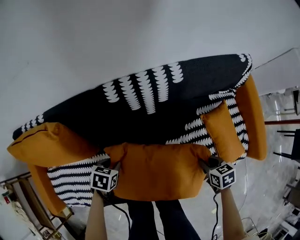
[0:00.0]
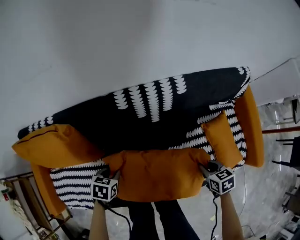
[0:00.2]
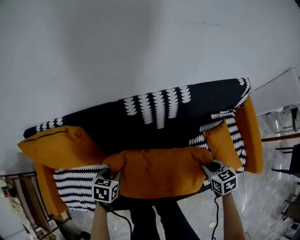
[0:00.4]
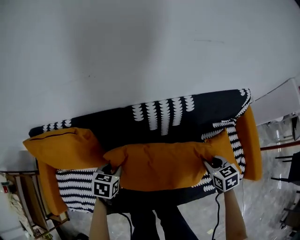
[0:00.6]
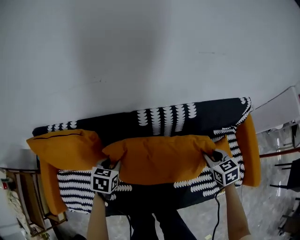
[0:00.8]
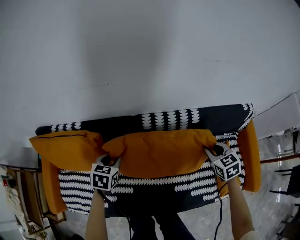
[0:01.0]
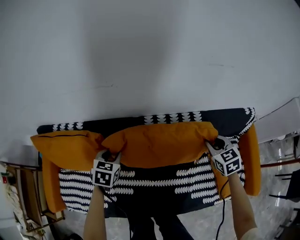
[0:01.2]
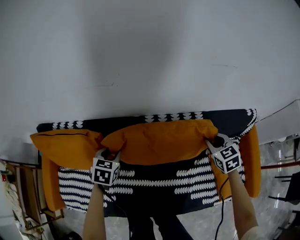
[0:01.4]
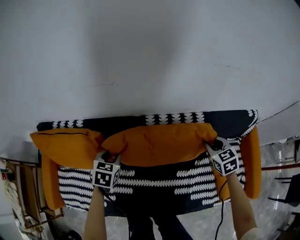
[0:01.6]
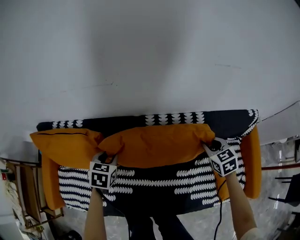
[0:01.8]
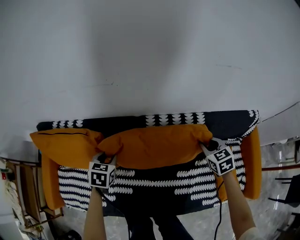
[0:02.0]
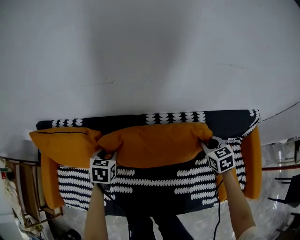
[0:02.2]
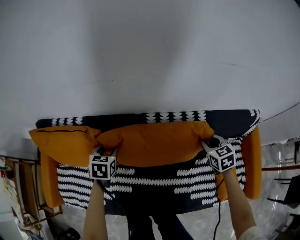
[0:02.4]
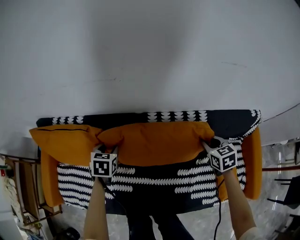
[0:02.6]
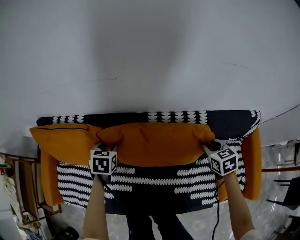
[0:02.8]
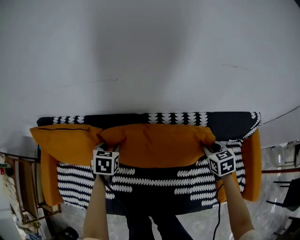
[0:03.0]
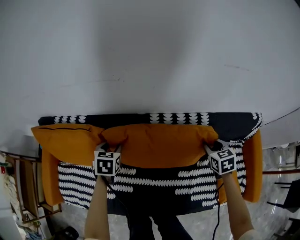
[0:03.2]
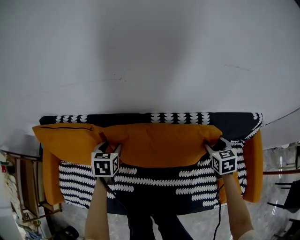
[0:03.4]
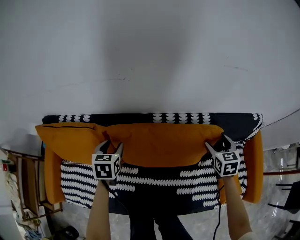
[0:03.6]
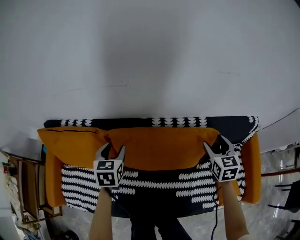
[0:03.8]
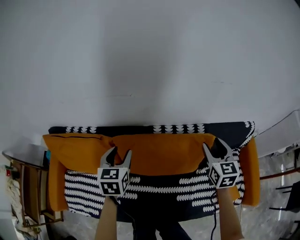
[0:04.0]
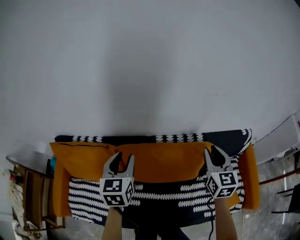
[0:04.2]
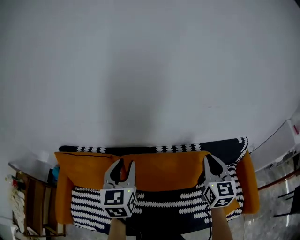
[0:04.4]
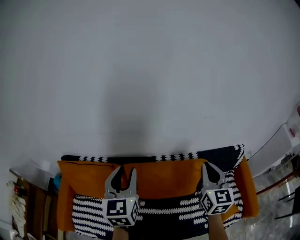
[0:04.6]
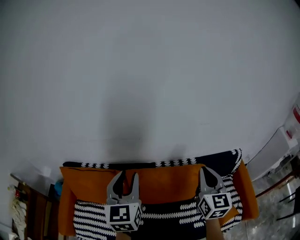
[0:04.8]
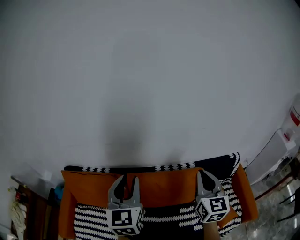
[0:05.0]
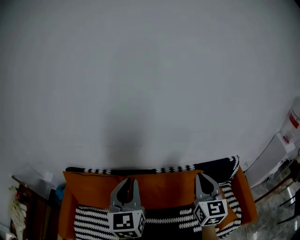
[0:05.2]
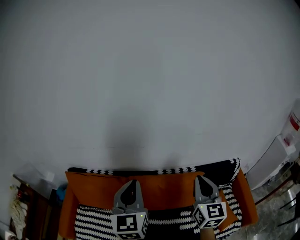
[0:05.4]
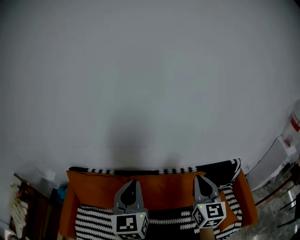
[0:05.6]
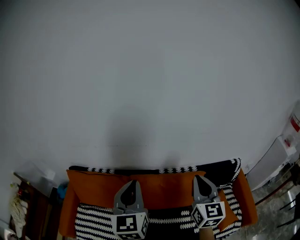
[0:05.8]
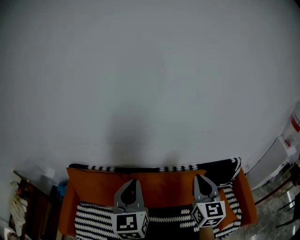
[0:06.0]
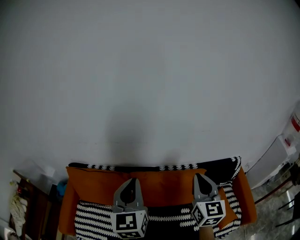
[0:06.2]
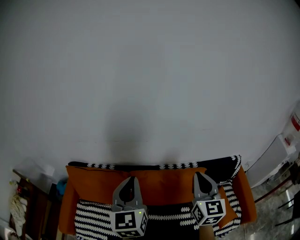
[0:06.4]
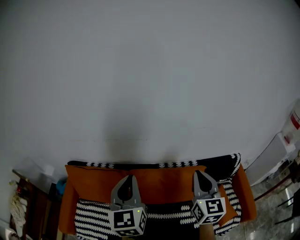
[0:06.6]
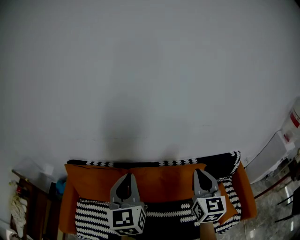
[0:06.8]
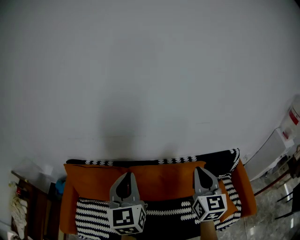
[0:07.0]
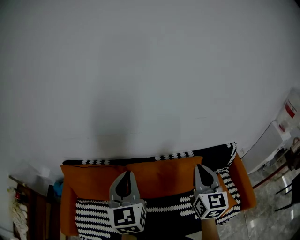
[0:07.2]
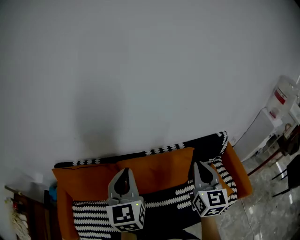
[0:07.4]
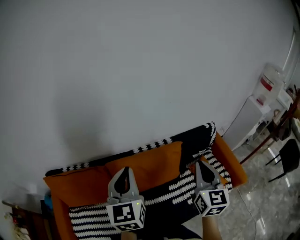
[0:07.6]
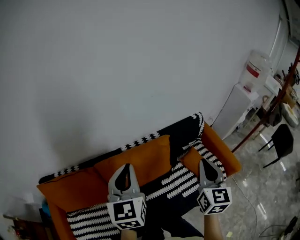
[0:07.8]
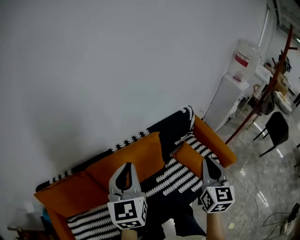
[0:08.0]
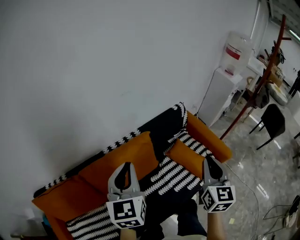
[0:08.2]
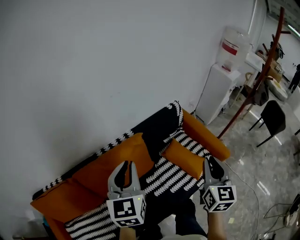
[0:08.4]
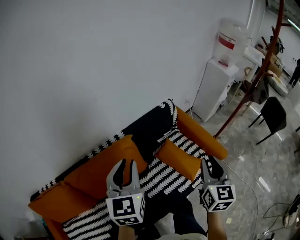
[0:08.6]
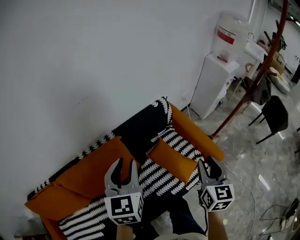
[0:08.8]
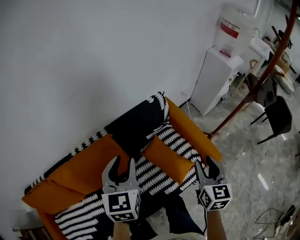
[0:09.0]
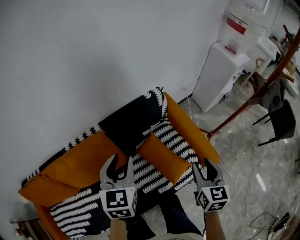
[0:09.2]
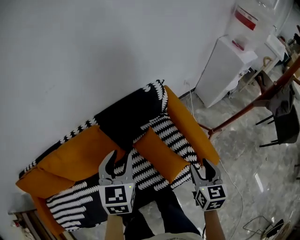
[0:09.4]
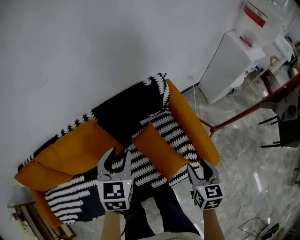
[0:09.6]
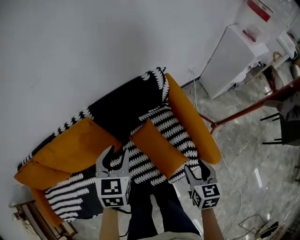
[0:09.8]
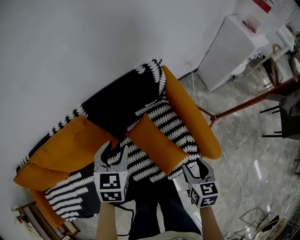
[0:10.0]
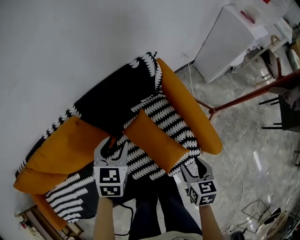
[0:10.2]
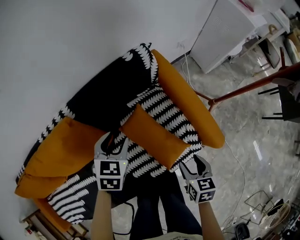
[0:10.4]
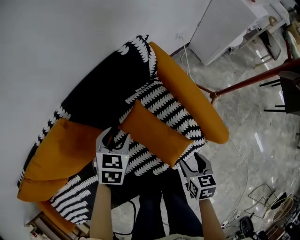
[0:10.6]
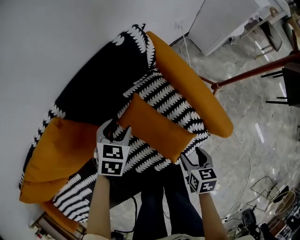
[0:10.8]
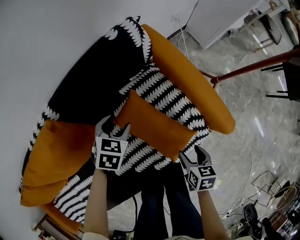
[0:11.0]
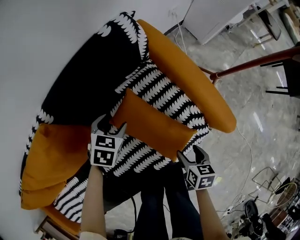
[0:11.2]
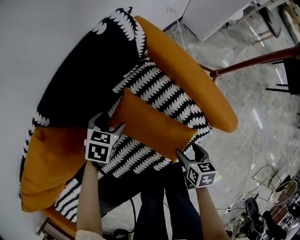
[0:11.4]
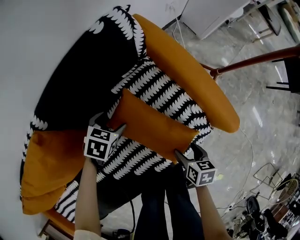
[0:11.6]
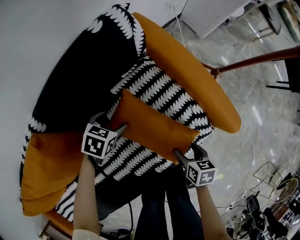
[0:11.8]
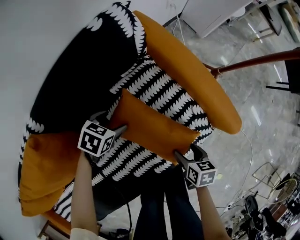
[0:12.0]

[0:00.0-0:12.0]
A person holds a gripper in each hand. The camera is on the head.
0:00.0 to 0:01.6: The right gripper shifts approximately 30 cm forward and upward, and swivels some 40 degrees, while the left gripper travels upward, forward and to the left by about 25 cm, and swivels about 30 degrees.
0:01.6 to 0:03.0: There are only small adjustments of the grippers.
0:03.0 to 0:04.4: Both grippers move upward, approximately 30 cm. The left gripper points its fingers approximately 40 degrees further upward, while the right gripper tips its fingers upward by some 40 degrees, and opens, then closes once more.
0:04.4 to 0:06.0: The right gripper shifts approximately 15 cm upward, backward and to the left. Meanwhile the left gripper shifts approximately 15 cm upward and backward, and closes its fingers.
0:06.0 to 0:07.6: The right gripper moves to the right and backward, some 10 cm, while the left gripper shifts about 5 cm to the right.
0:07.6 to 0:09.0: The two grippers travel together, to the right, roughly 40 cm. The right gripper turns by roughly 20 degrees, and opens its fingers, while the left gripper turns by approximately 20 degrees, and opens up.
0:09.0 to 0:10.4: The two grippers go approximately 25 cm downward. The left gripper rotates approximately 30 degrees. Meanwhile the right gripper swivels roughly 30 degrees.
0:10.4 to 0:12.0: The two grippers go some 20 cm downward. The left gripper swivels some 40 degrees, and opens. Meanwhile the right gripper changes its angle by about 20 degrees.

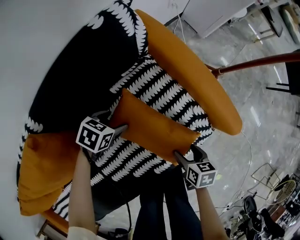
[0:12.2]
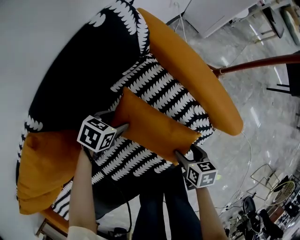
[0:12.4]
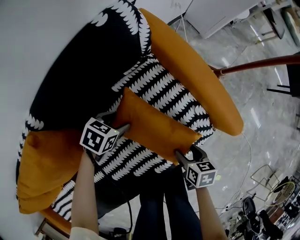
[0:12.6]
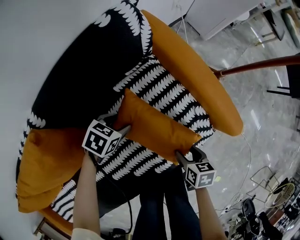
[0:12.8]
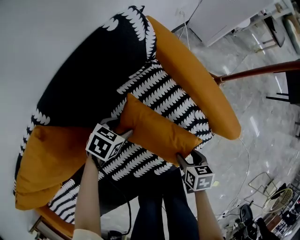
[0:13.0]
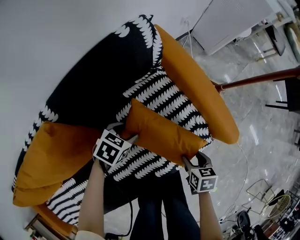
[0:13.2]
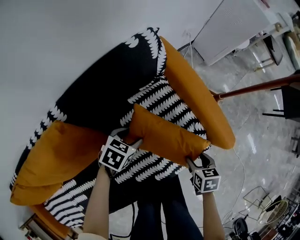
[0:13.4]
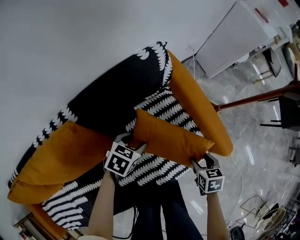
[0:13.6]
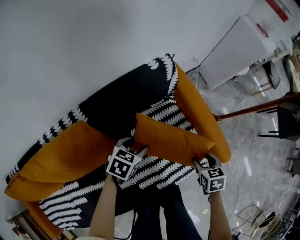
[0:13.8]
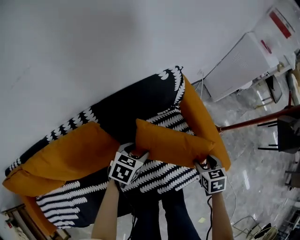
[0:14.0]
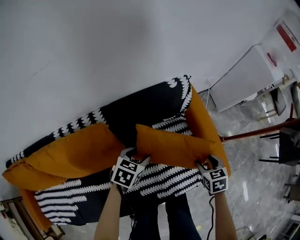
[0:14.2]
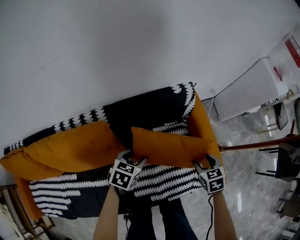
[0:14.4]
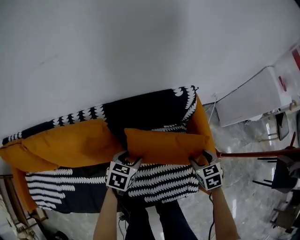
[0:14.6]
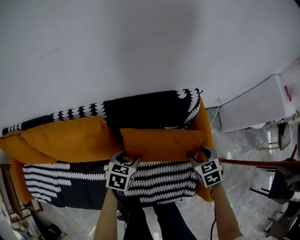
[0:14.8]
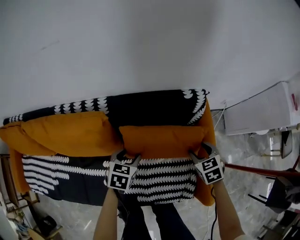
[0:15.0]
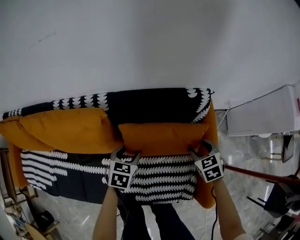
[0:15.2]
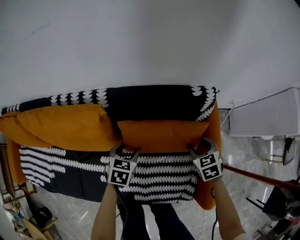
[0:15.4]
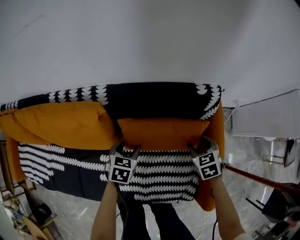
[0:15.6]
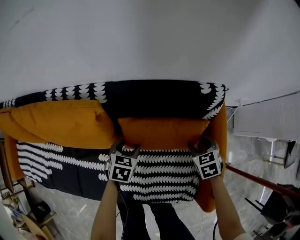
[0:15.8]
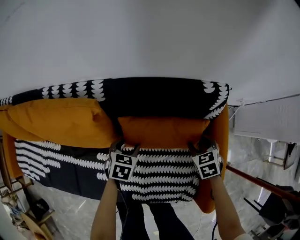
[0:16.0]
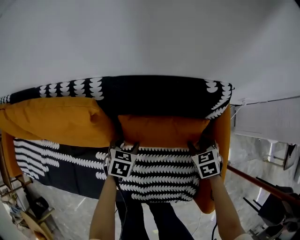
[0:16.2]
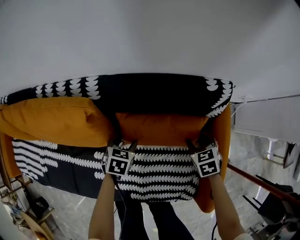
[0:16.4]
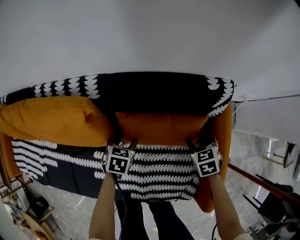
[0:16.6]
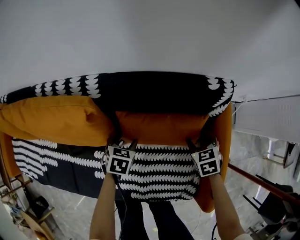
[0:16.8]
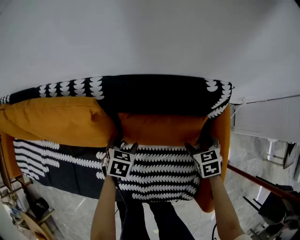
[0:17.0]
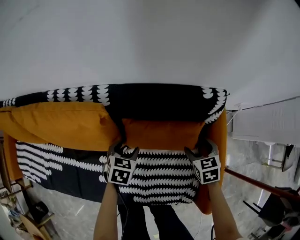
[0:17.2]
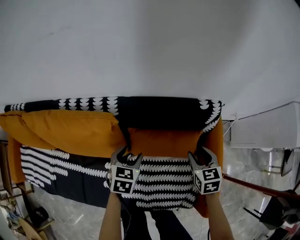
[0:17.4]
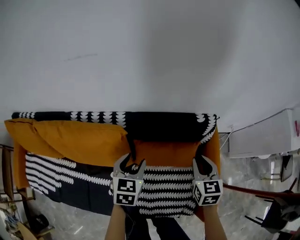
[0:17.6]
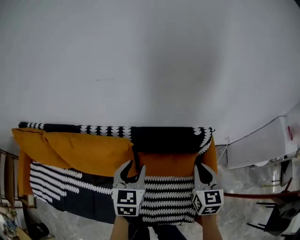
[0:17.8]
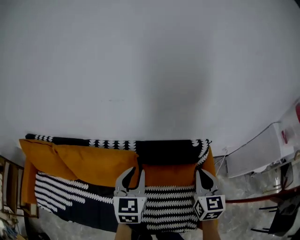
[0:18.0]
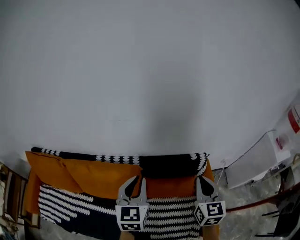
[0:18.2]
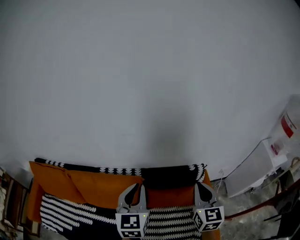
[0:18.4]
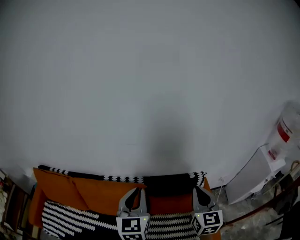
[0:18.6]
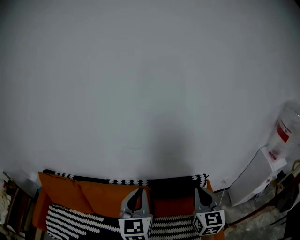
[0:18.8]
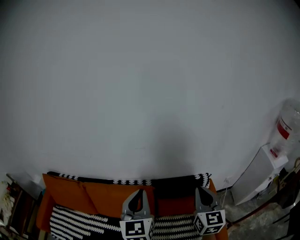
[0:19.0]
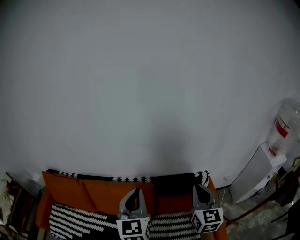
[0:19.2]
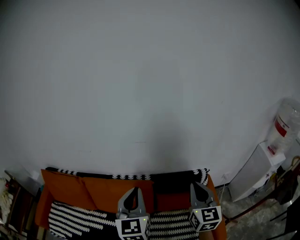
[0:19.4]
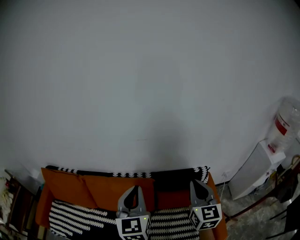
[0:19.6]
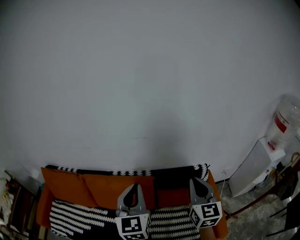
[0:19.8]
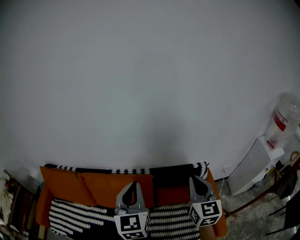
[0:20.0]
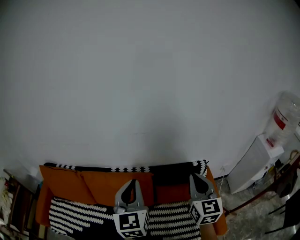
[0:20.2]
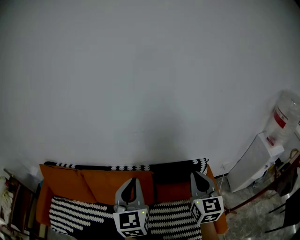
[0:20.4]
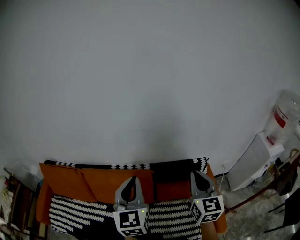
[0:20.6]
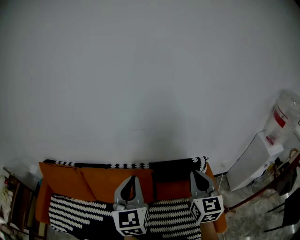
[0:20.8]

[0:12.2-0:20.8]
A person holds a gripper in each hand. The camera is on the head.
0:12.2 to 0:13.6: The right gripper moves upward and forward, approximately 10 cm, and rotates about 20 degrees. The left gripper travels upward by some 10 cm.
0:13.6 to 0:15.0: The left gripper ends up some 10 cm from where it was, and swivels some 40 degrees. Meanwhile the right gripper changes place by roughly 25 cm, and twists about 50 degrees counterclockwise, seen from behind.
0:15.0 to 0:16.6: Both grippers move downward, approximately 15 cm.
0:16.6 to 0:18.0: The grippers both shift upward by roughly 40 cm. The right gripper points its fingers roughly 40 degrees further upward, and closes up. The left gripper angles its fingers upward, by about 40 degrees, and closes up.
0:18.0 to 0:19.4: The left gripper travels upward and backward by roughly 25 cm; the right gripper shifts about 25 cm upward, to the left and backward.
0:19.4 to 0:20.8: The two grippers keep their place.

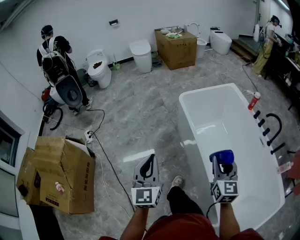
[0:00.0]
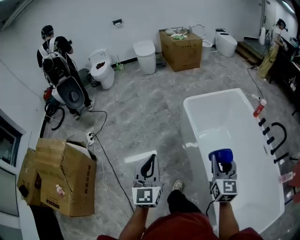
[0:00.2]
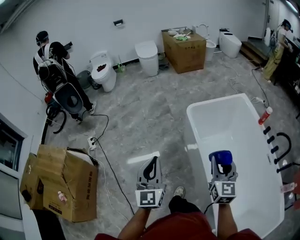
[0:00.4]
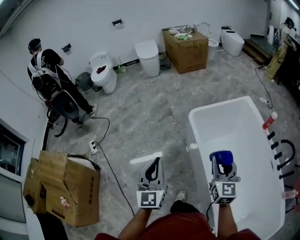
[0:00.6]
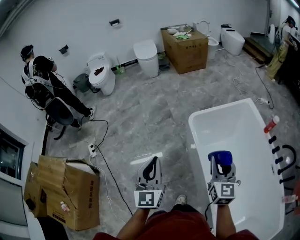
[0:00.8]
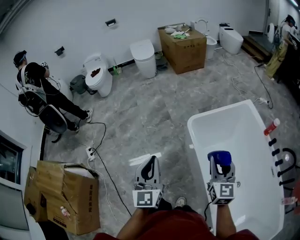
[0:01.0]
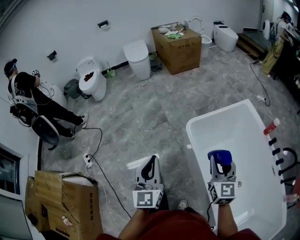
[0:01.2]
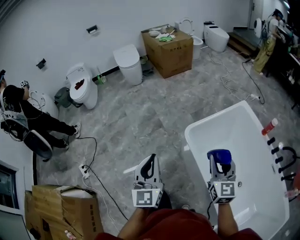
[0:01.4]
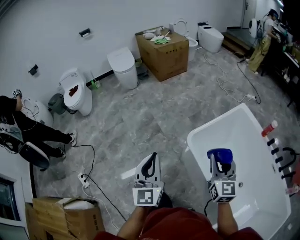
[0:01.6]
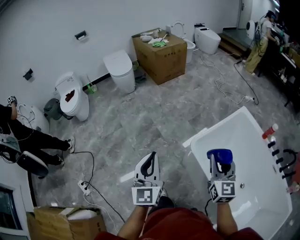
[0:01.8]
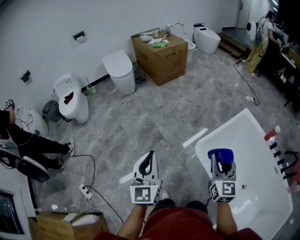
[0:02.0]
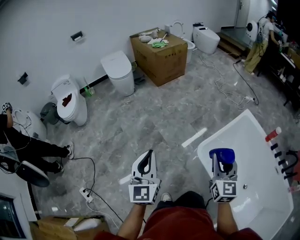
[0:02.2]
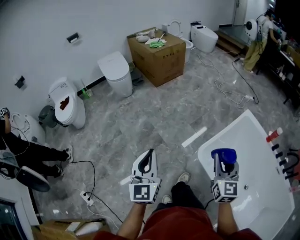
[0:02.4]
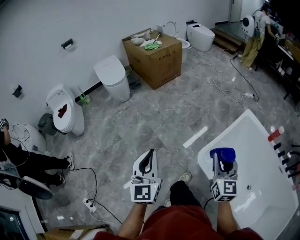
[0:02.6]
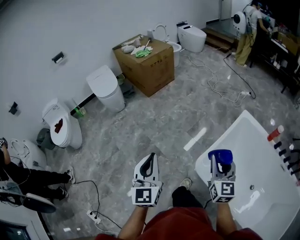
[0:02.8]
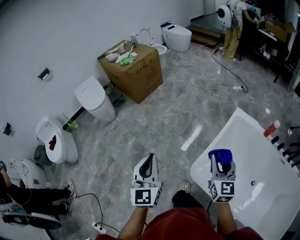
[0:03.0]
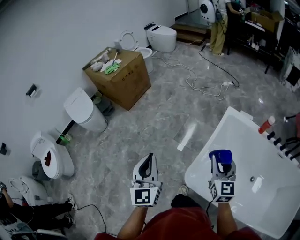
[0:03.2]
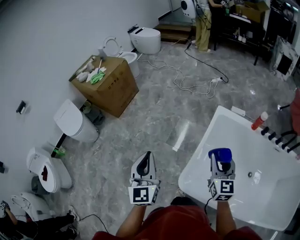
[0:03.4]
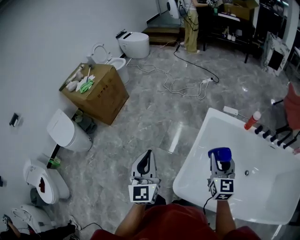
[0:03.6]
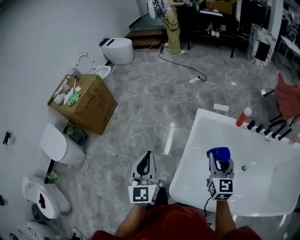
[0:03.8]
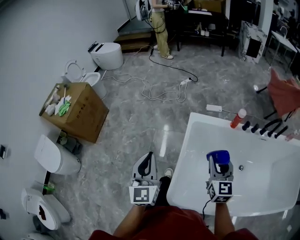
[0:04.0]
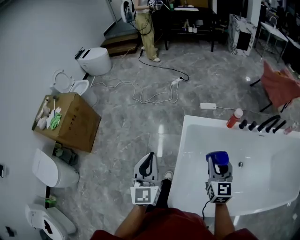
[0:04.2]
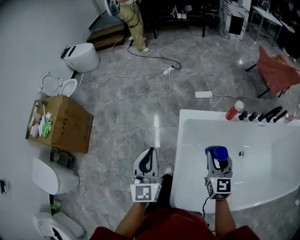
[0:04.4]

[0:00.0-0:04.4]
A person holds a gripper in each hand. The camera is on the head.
0:00.0 to 0:01.4: The pair of grippers is taken forward, some 50 cm.
0:01.4 to 0:03.0: The two grippers go about 35 cm forward. The left gripper swivels roughly 20 degrees, while the right gripper turns by roughly 30 degrees.
0:03.0 to 0:04.4: The right gripper moves about 40 cm, and rotates roughly 40 degrees. The left gripper shifts by some 50 cm, and rotates some 40 degrees.
